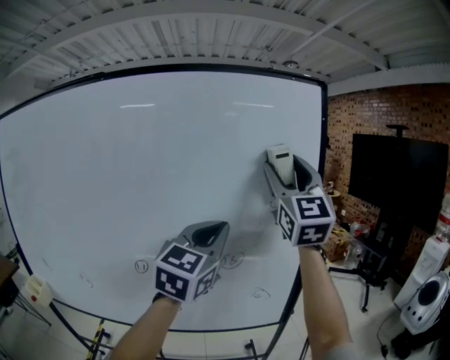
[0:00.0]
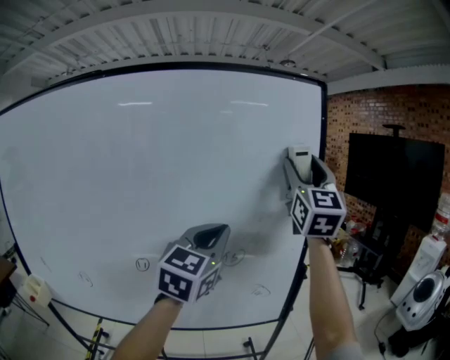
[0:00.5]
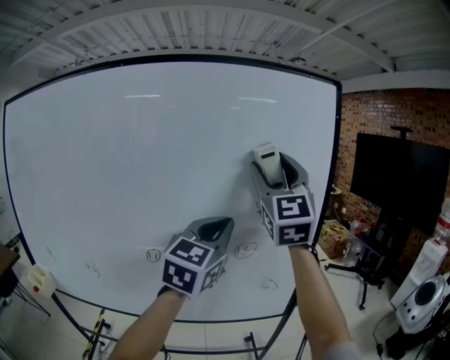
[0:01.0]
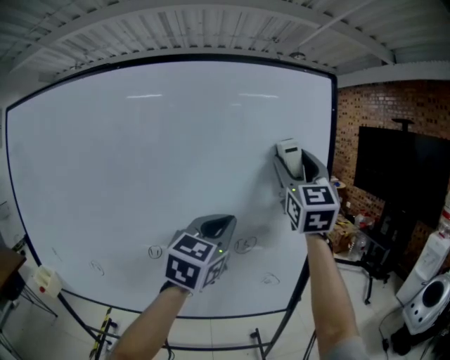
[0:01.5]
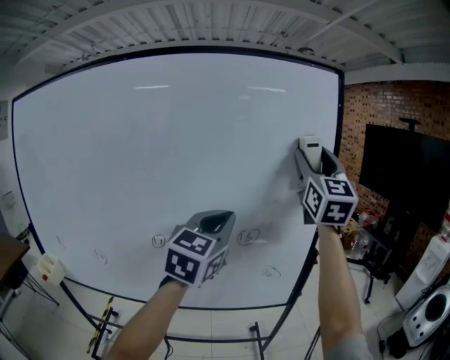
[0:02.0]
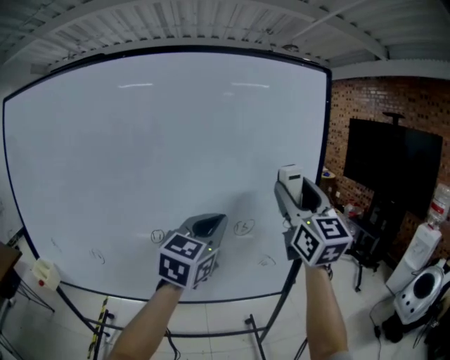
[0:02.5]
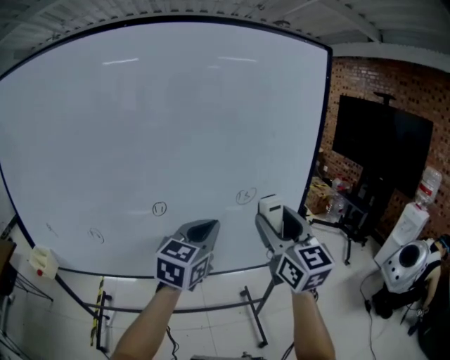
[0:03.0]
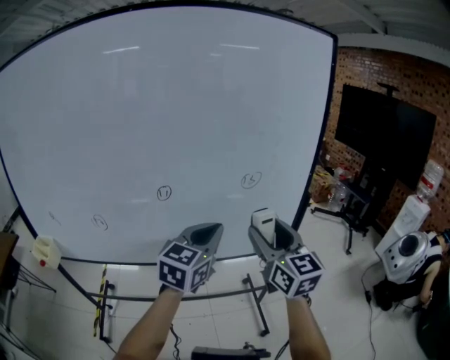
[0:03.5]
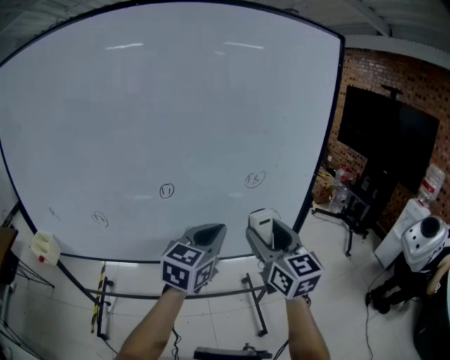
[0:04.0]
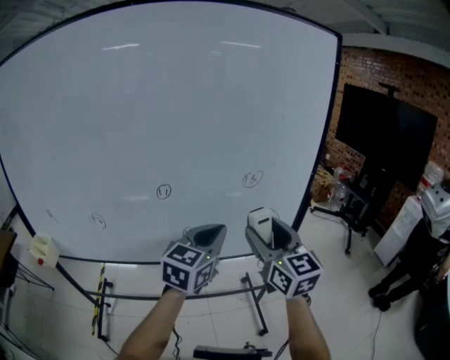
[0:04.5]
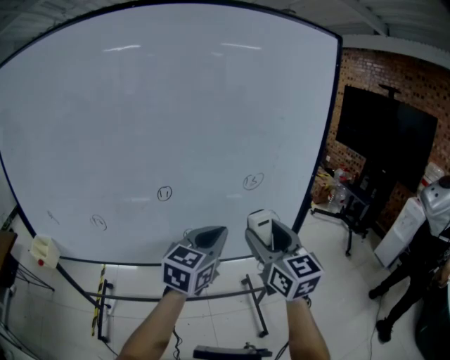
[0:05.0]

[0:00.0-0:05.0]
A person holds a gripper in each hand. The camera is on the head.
0:00.0 to 0:02.5: The right gripper swings left and right, about 10 cm each way, with 3 reversals; the left gripper shifts some 5 cm downward.
0:02.5 to 0:05.0: Both grippers travel together downward, approximately 15 cm. The right gripper changes its angle by roughly 20 degrees.

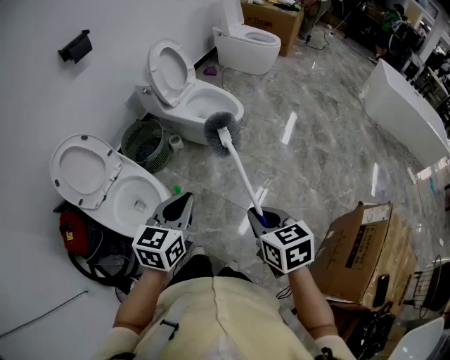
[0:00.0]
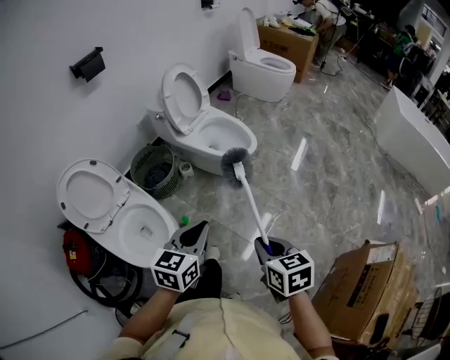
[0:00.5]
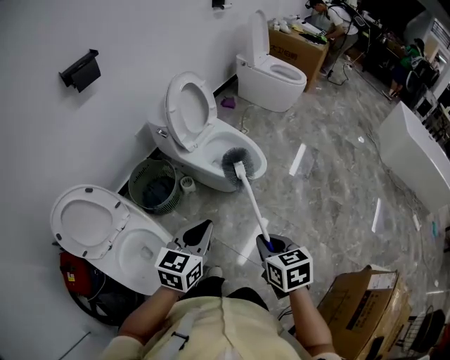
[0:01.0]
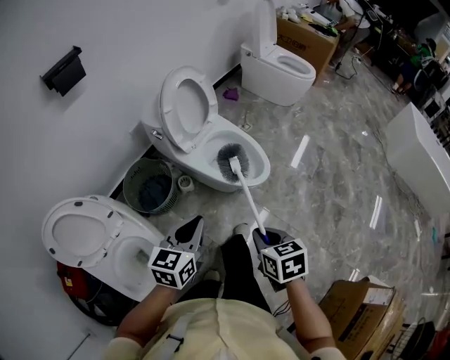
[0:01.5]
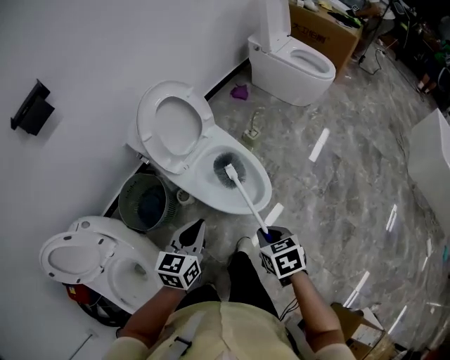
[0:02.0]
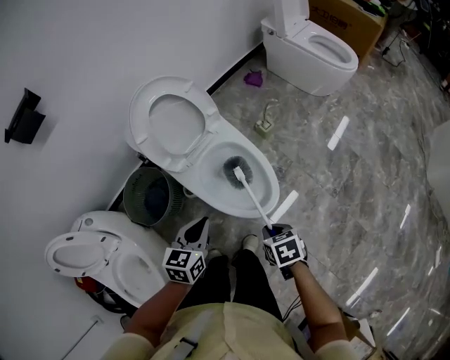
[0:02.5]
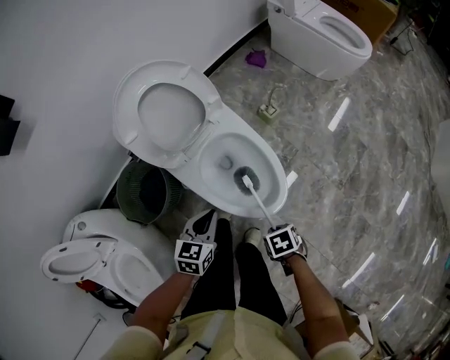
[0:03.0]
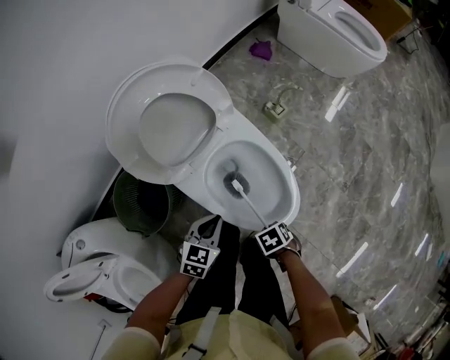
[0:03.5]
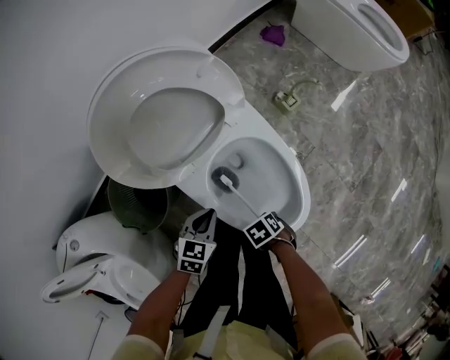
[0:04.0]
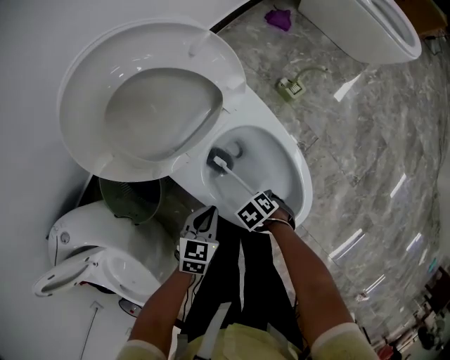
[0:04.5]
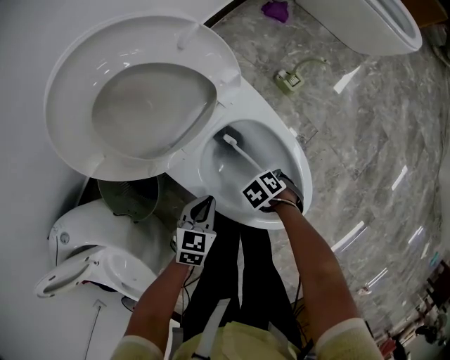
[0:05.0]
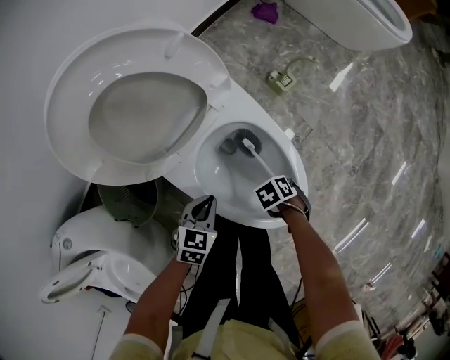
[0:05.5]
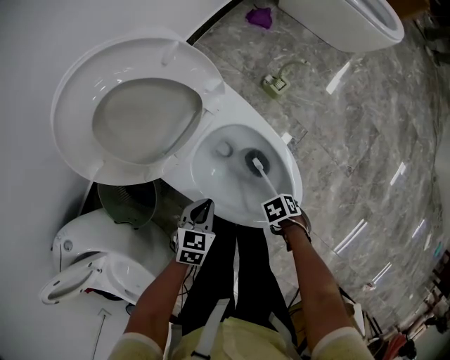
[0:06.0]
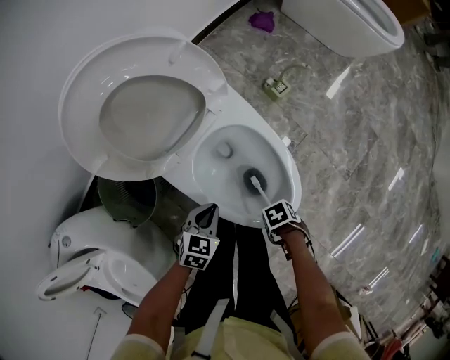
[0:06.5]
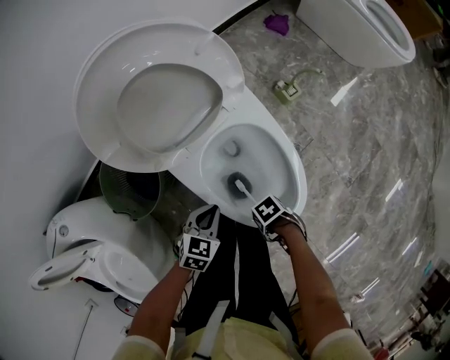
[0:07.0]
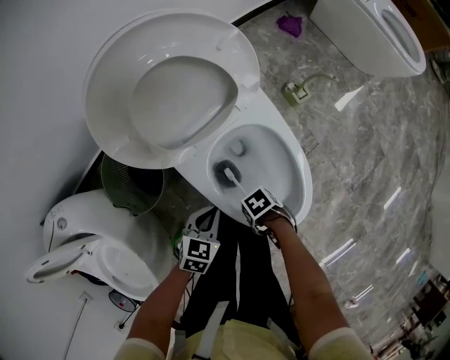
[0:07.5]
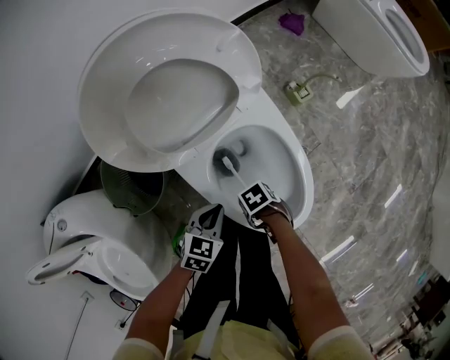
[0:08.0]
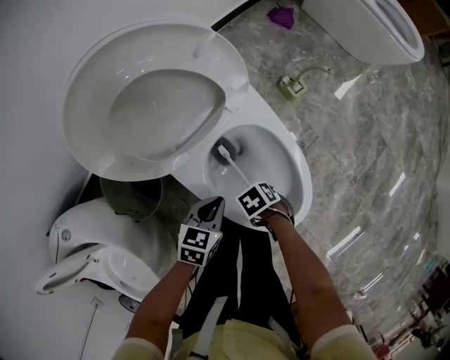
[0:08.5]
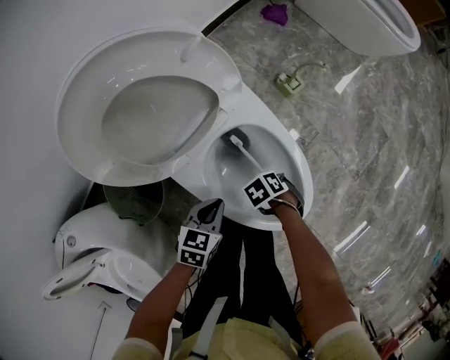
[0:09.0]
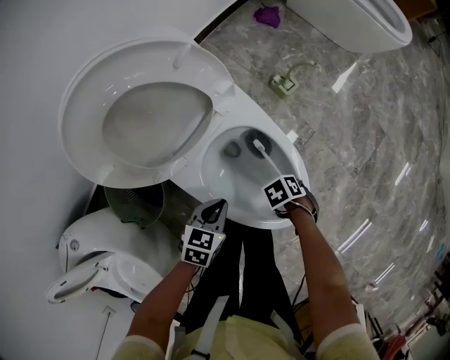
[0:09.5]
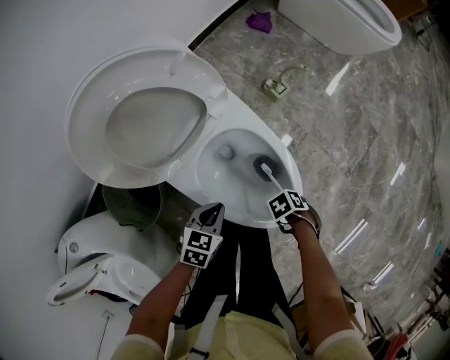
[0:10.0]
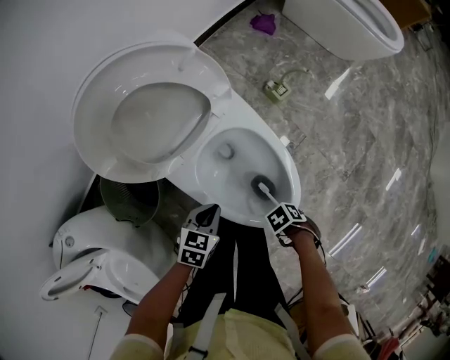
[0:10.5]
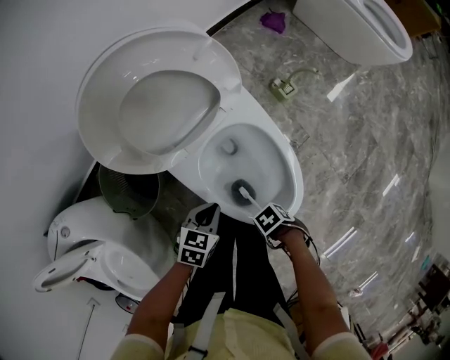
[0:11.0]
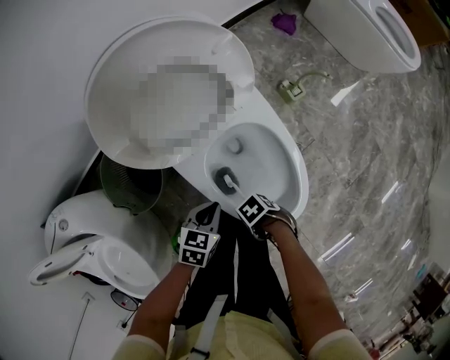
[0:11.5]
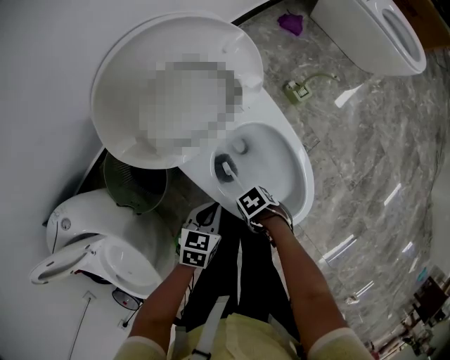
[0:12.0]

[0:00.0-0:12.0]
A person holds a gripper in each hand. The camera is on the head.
0:00.0 to 0:02.0: The left gripper changes place by roughly 50 cm.
0:02.0 to 0:04.0: The left gripper travels downward by about 30 cm, and swivels about 30 degrees.
0:08.0 to 0:10.0: The left gripper shifts by approximately 5 cm.
0:10.0 to 0:12.0: The left gripper moves about 5 cm.

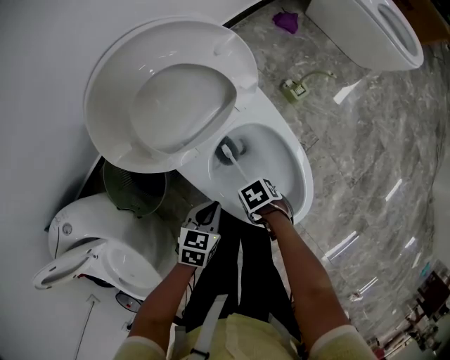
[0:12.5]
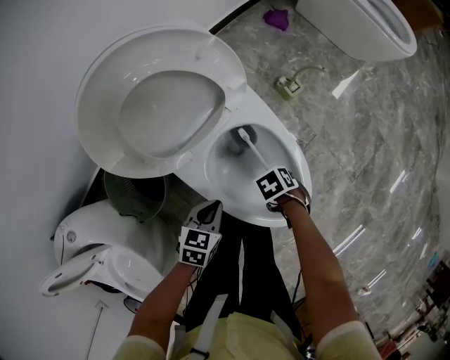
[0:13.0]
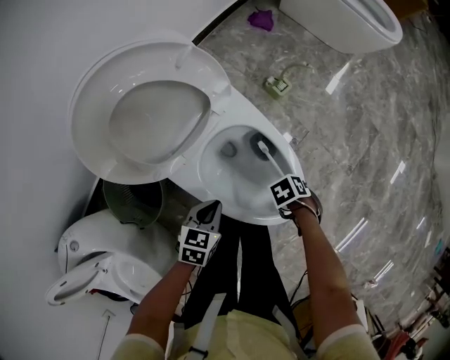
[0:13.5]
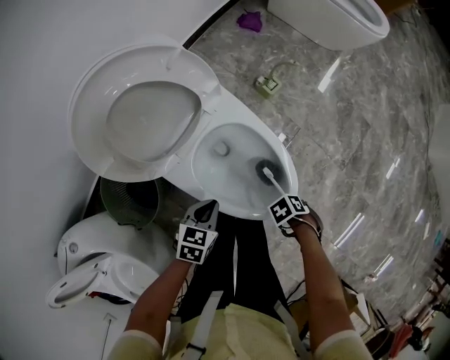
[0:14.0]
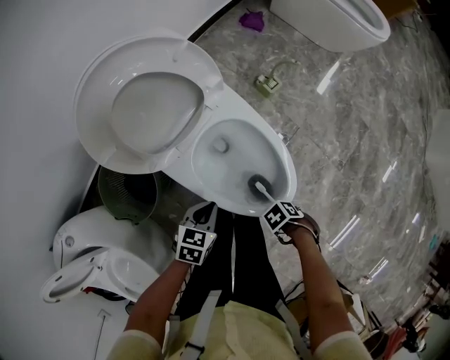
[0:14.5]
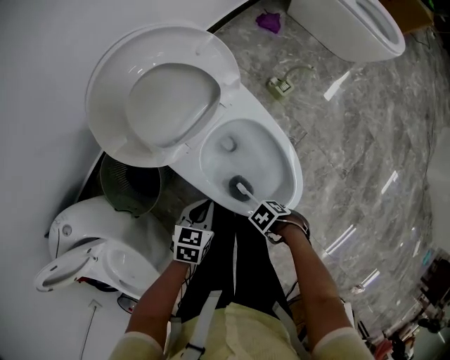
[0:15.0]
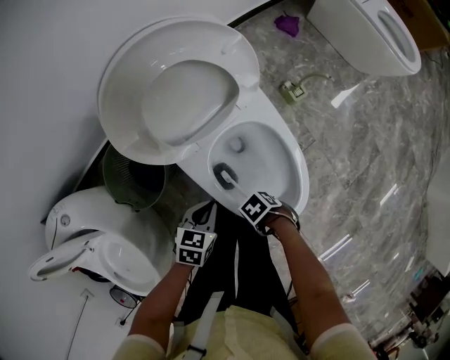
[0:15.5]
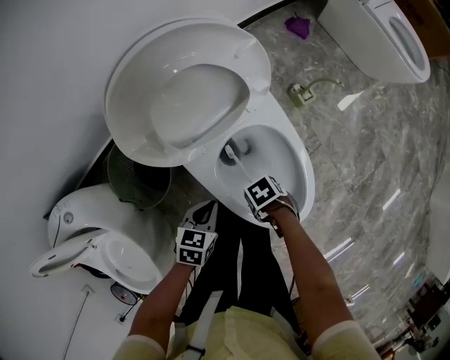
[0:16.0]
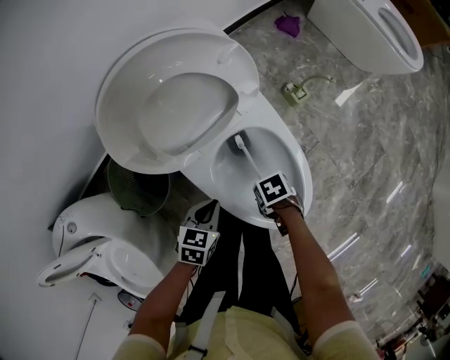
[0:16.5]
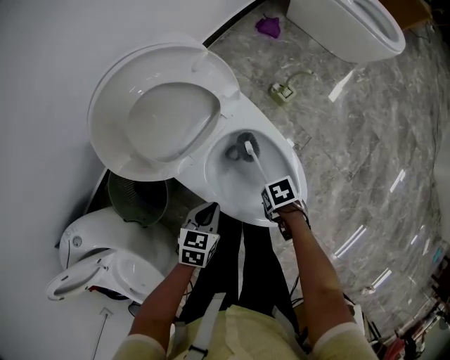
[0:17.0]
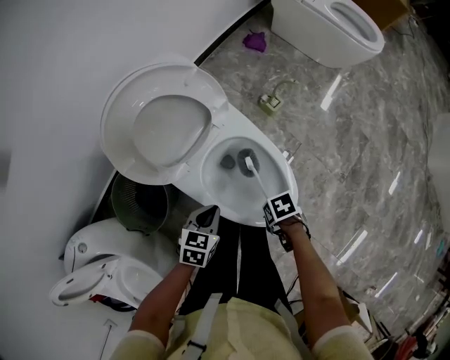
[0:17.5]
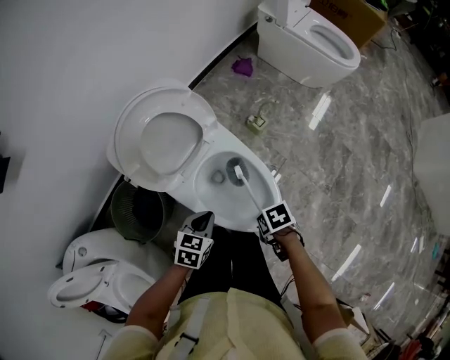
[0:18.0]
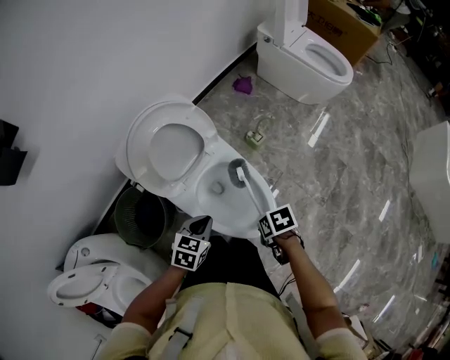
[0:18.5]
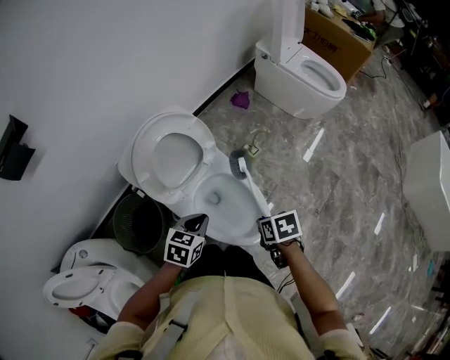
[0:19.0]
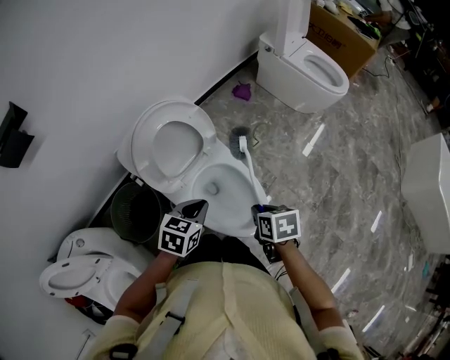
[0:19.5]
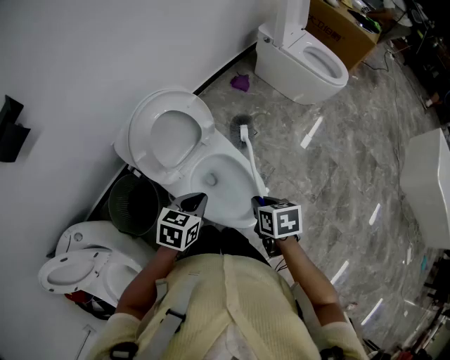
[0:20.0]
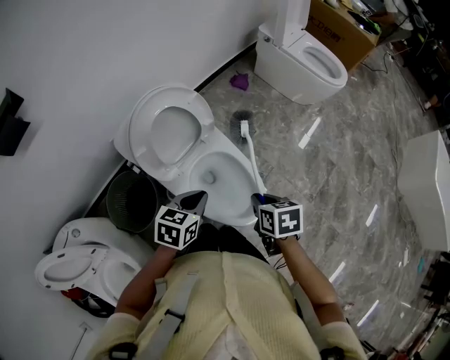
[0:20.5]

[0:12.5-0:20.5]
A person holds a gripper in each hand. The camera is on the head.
0:14.5 to 0:16.5: The left gripper changes place by roughly 5 cm.
0:16.5 to 0:18.5: The left gripper goes some 15 cm upward.
0:18.5 to 0:20.5: The left gripper goes roughly 10 cm upward.

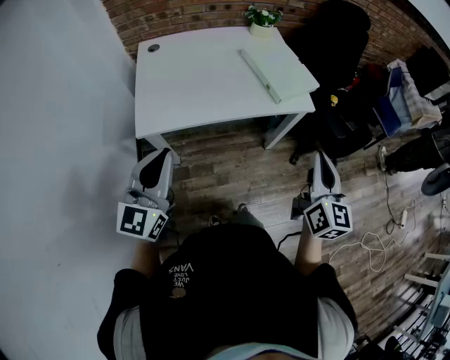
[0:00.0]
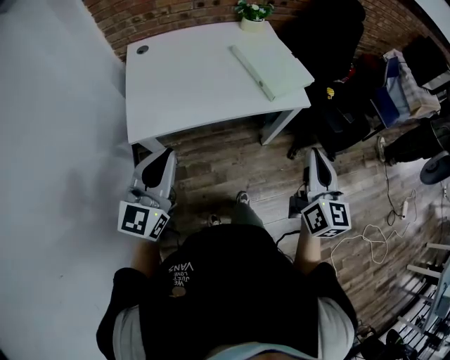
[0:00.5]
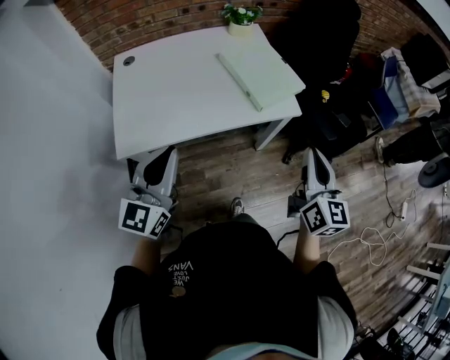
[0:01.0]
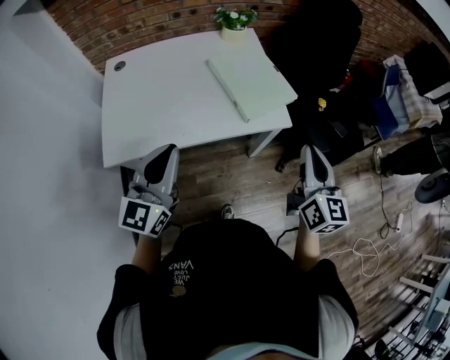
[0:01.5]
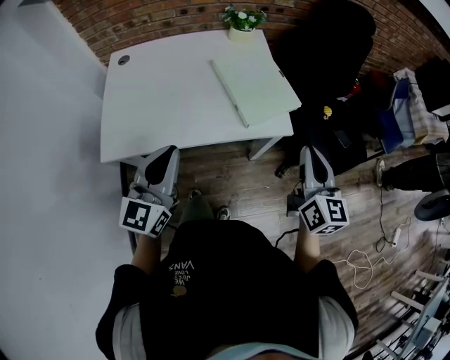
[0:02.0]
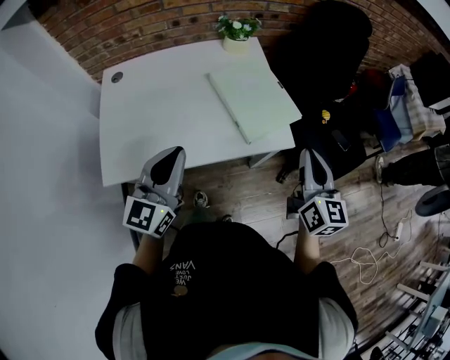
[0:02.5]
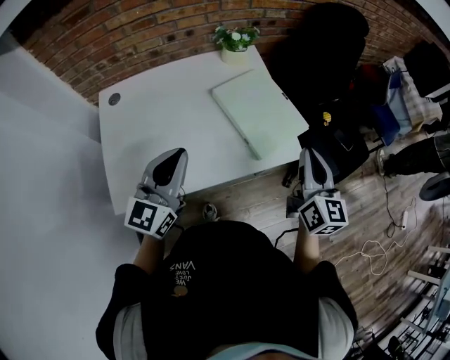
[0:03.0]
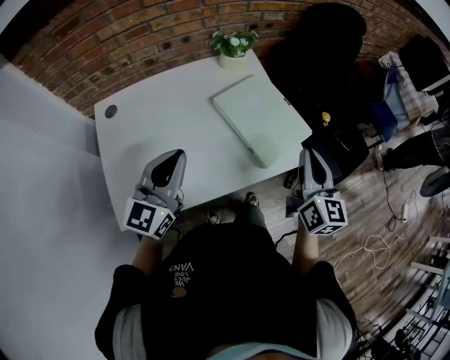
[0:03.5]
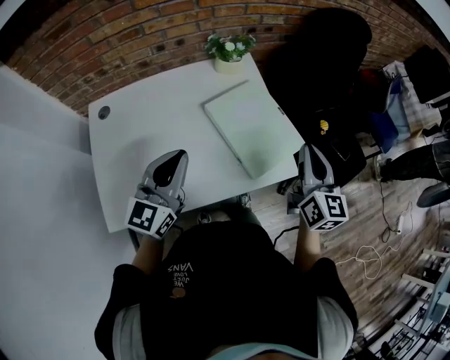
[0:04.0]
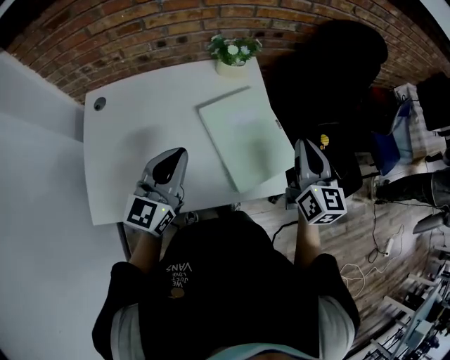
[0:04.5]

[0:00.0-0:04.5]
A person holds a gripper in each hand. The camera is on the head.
0:00.0 to 0:02.0: The two grippers go about 20 cm forward and to the right.
0:02.0 to 0:04.5: The grippers both shift forward by about 25 cm.
